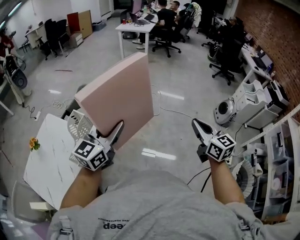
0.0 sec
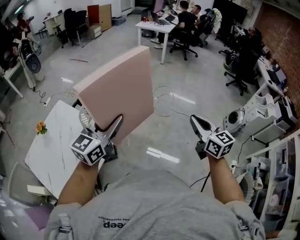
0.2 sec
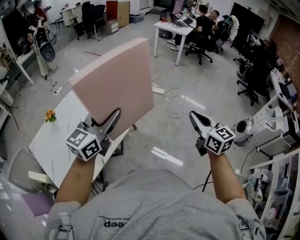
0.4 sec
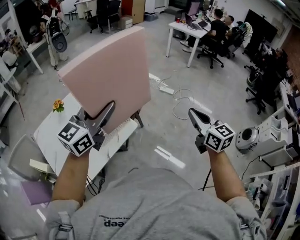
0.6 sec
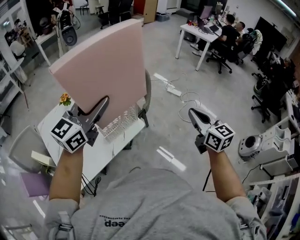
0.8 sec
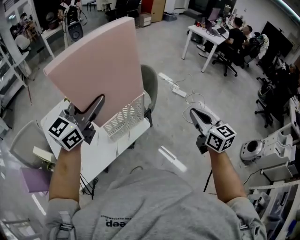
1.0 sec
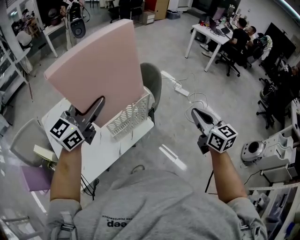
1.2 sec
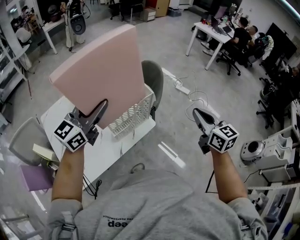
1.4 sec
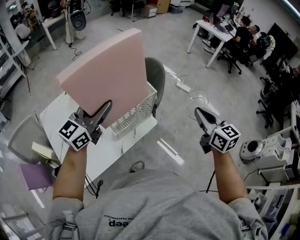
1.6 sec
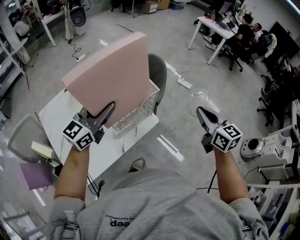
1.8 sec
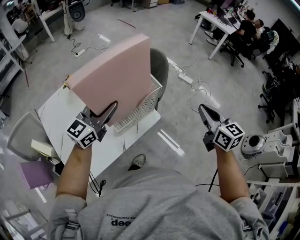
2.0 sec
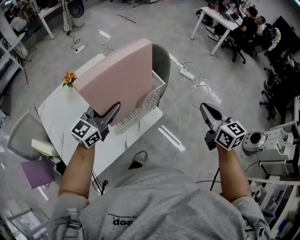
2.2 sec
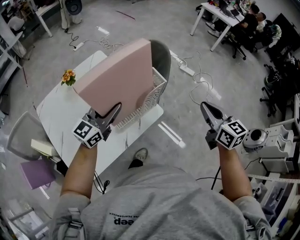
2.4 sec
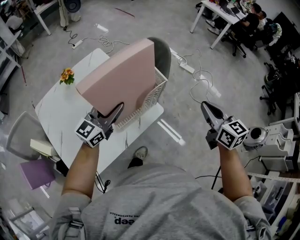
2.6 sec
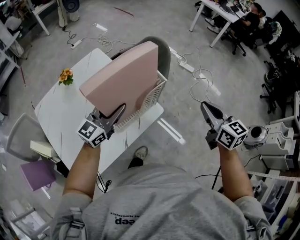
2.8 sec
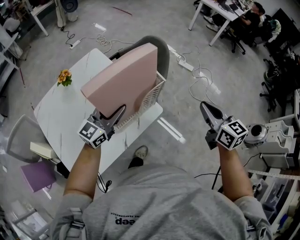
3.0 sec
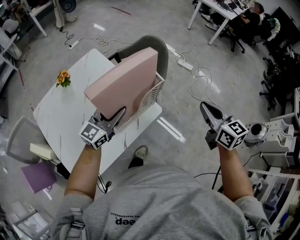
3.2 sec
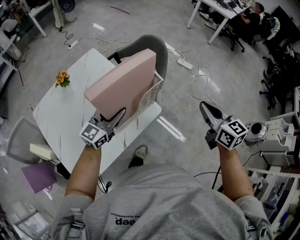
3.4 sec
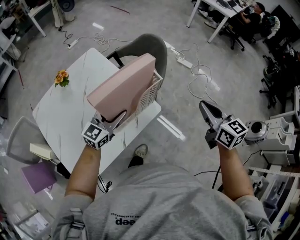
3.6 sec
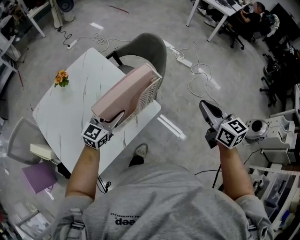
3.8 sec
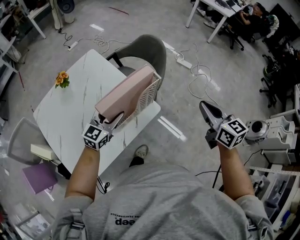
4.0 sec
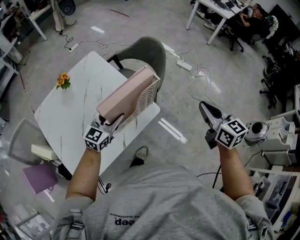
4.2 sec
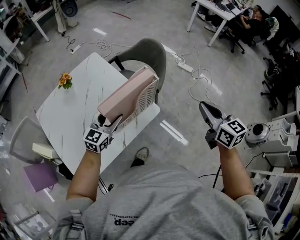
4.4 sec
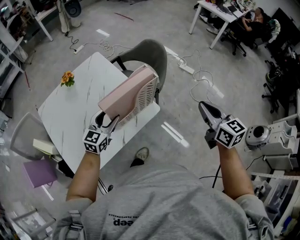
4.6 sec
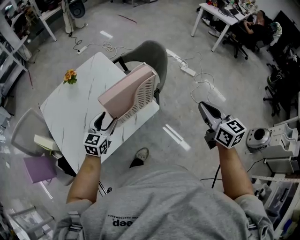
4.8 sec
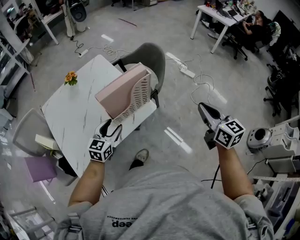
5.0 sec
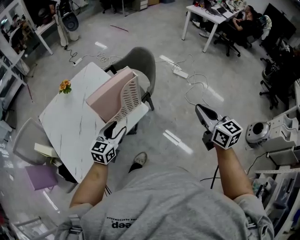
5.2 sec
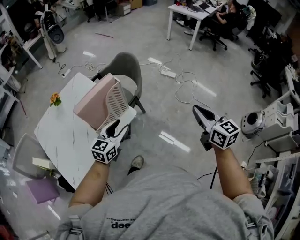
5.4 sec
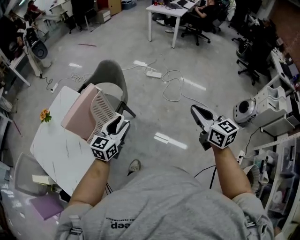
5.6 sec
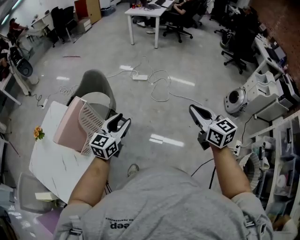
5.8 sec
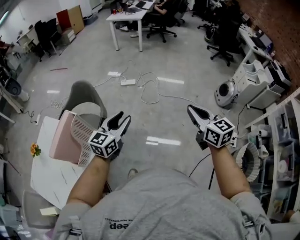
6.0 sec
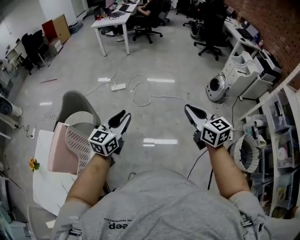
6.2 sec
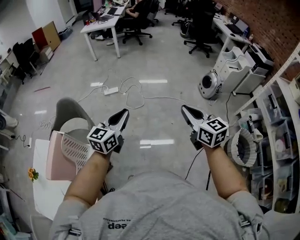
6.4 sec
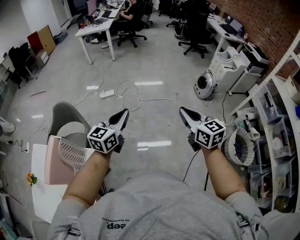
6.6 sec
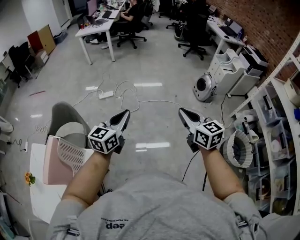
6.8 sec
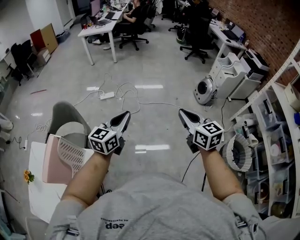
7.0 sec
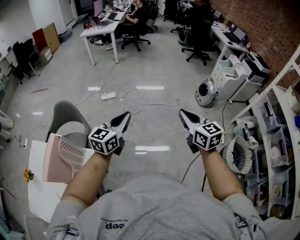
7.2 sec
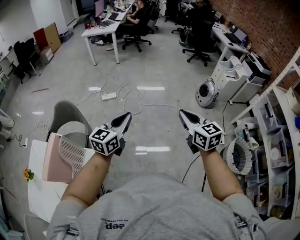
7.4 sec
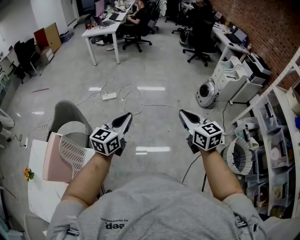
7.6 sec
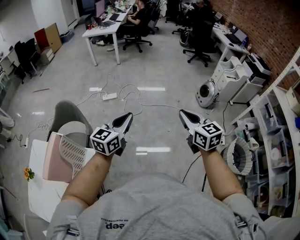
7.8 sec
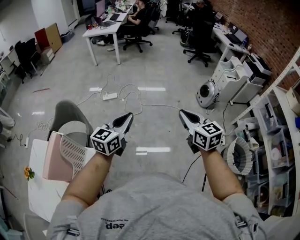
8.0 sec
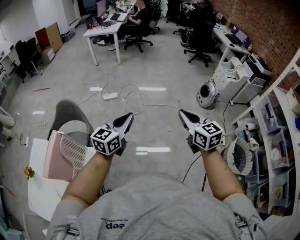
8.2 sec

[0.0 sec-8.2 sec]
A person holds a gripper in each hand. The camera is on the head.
0.0 sec to 1.6 sec: The left gripper reaches some 10 cm upward, then returns, and rotates approximately 30 degrees. Meanwhile the right gripper shifts by roughly 35 cm, and swivels approximately 30 degrees.
1.6 sec to 3.2 sec: The left gripper is displaced downward by some 20 cm, while the right gripper heads downward, covering about 5 cm.
3.2 sec to 5.0 sec: The left gripper is displaced backward and downward by approximately 15 cm, and swivels some 30 degrees. The right gripper shifts some 5 cm backward.
5.0 sec to 6.6 sec: The left gripper moves approximately 50 cm, swivels roughly 60 degrees, and closes up. Meanwhile the right gripper shifts by approximately 30 cm, and rotates about 50 degrees.
6.6 sec to 8.2 sec: The grippers move only a little.

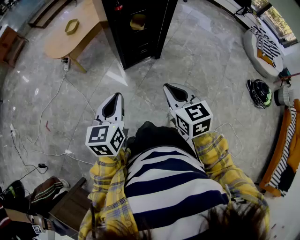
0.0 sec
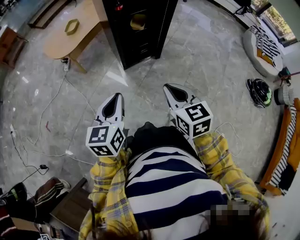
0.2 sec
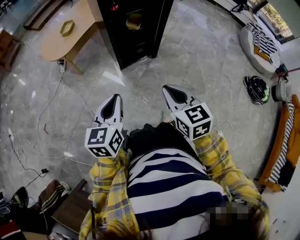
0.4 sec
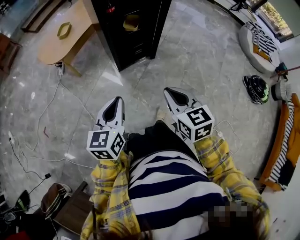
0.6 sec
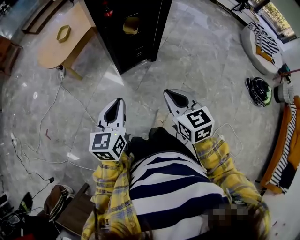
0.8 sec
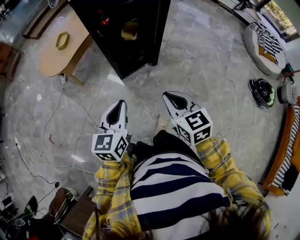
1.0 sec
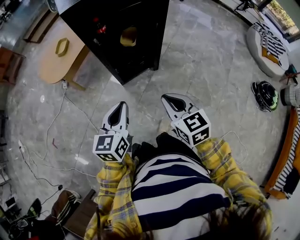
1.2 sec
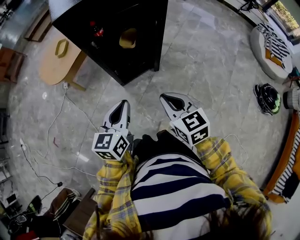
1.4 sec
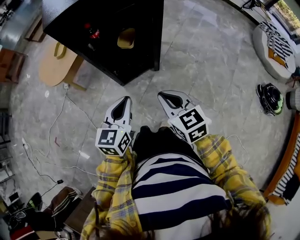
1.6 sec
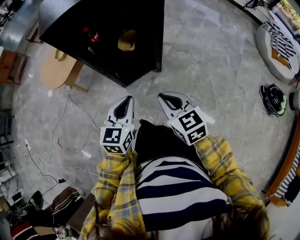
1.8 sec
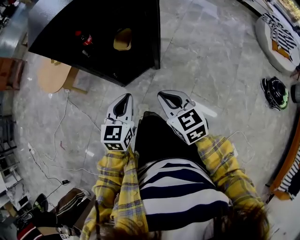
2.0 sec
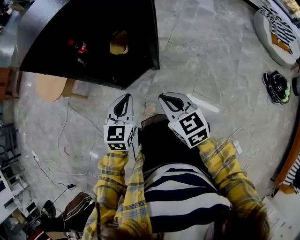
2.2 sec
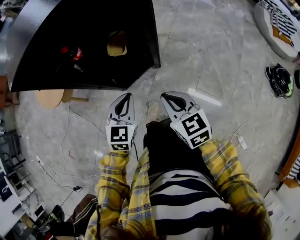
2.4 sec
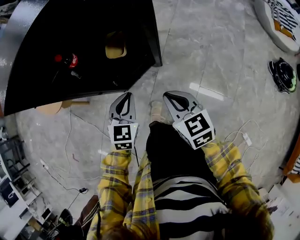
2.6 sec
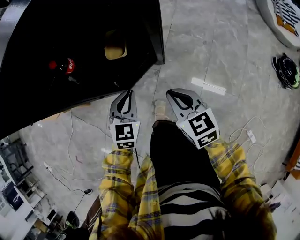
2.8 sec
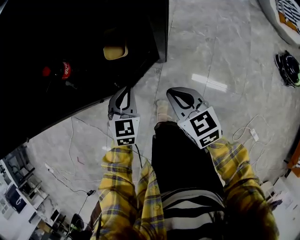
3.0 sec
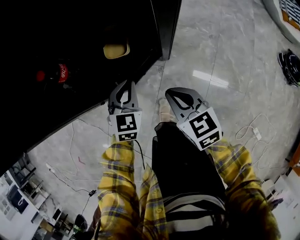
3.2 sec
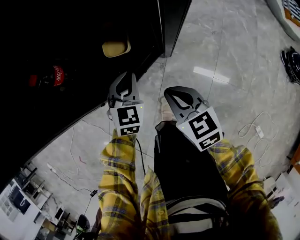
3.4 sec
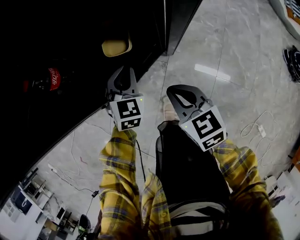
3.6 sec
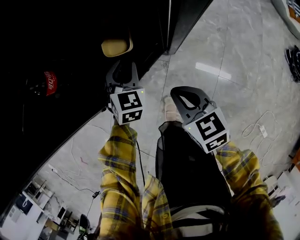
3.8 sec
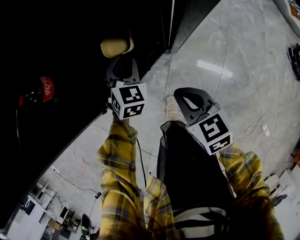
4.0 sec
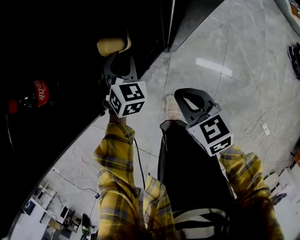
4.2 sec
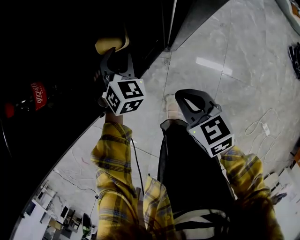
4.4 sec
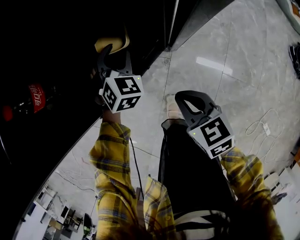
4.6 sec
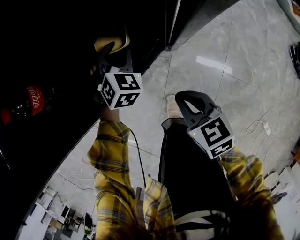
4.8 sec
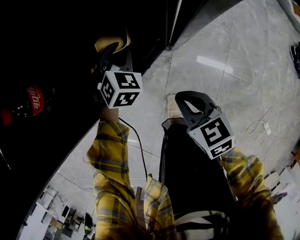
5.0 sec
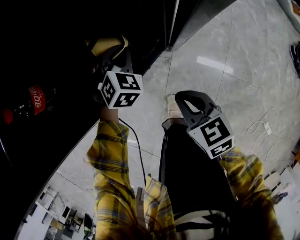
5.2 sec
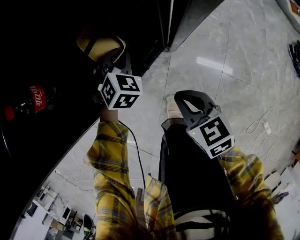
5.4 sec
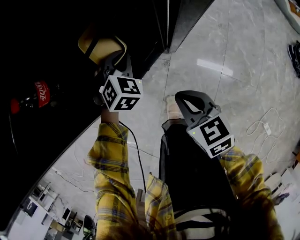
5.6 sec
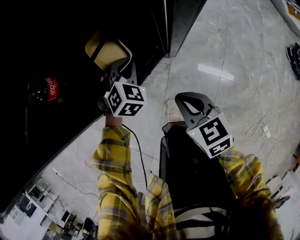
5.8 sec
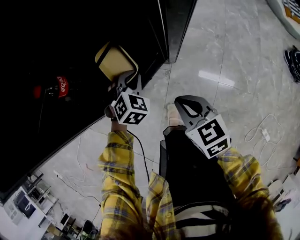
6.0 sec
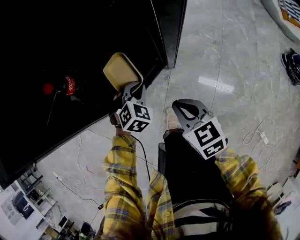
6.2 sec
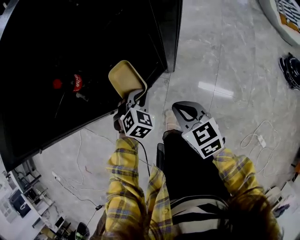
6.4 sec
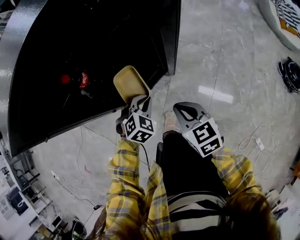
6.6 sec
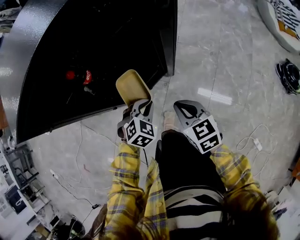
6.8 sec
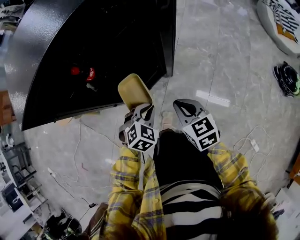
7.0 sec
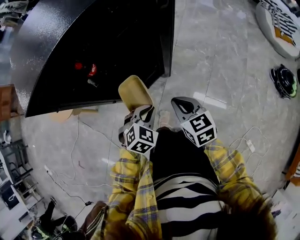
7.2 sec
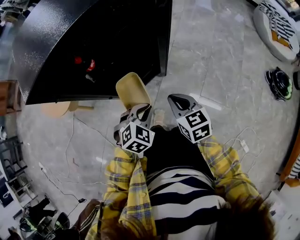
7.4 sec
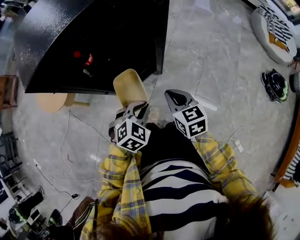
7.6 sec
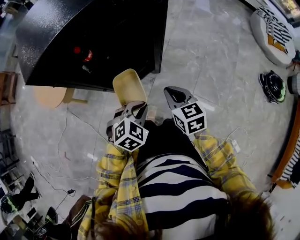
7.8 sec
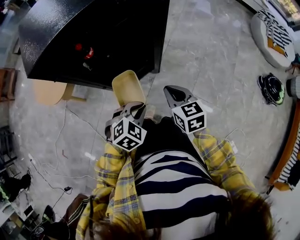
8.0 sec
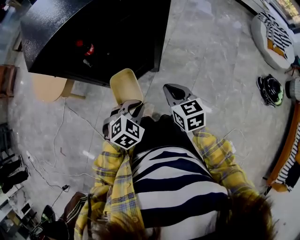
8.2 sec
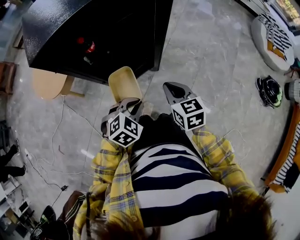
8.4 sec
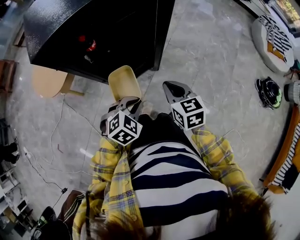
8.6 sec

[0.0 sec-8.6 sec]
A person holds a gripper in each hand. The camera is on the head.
0.0 sec to 1.4 sec: Both grippers travel together forward and to the right, roughly 15 cm.
1.4 sec to 2.8 sec: The two grippers go about 20 cm forward and downward. The left gripper turns by some 40 degrees.
2.8 sec to 4.4 sec: The right gripper travels downward by roughly 10 cm, while the left gripper heads forward and downward, covering about 20 cm, rotates approximately 30 degrees, and opens.
4.4 sec to 5.8 sec: The left gripper closes its fingers.
5.8 sec to 7.2 sec: The right gripper heads upward, covering roughly 10 cm. The left gripper goes about 25 cm backward and upward.
7.2 sec to 8.6 sec: The left gripper is displaced upward and backward by some 10 cm; the right gripper changes place by roughly 5 cm.

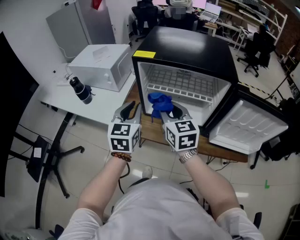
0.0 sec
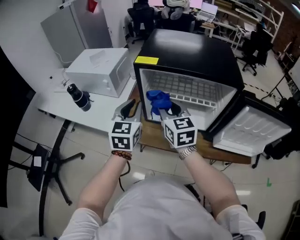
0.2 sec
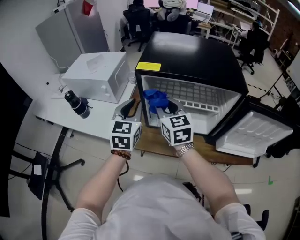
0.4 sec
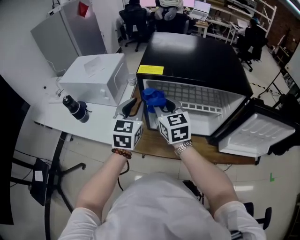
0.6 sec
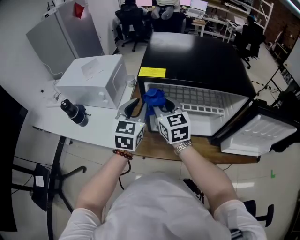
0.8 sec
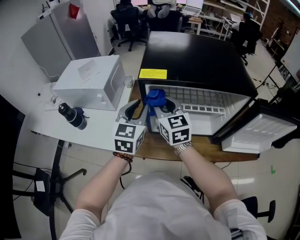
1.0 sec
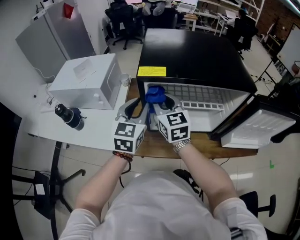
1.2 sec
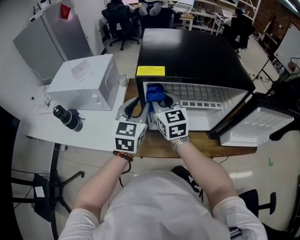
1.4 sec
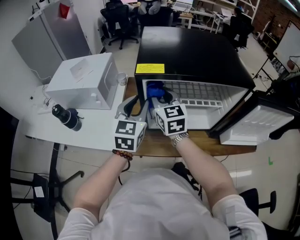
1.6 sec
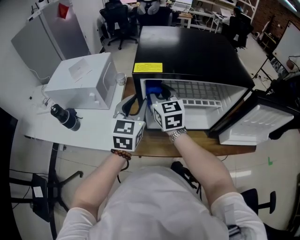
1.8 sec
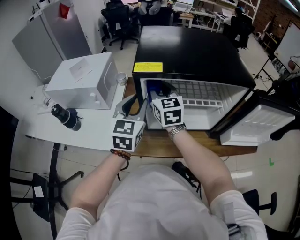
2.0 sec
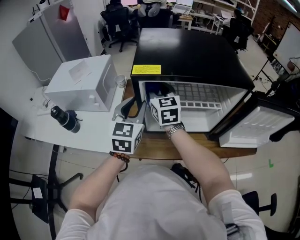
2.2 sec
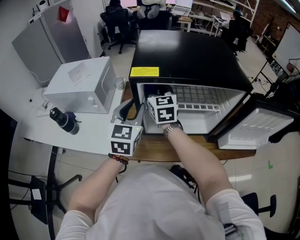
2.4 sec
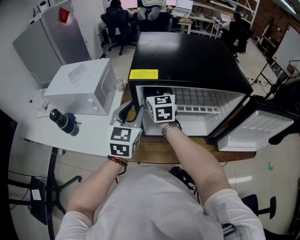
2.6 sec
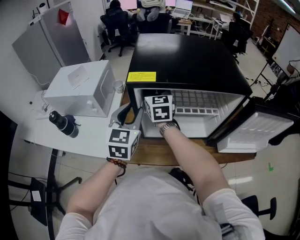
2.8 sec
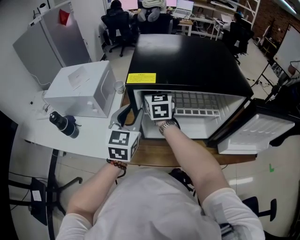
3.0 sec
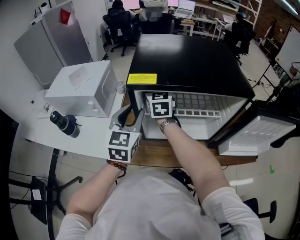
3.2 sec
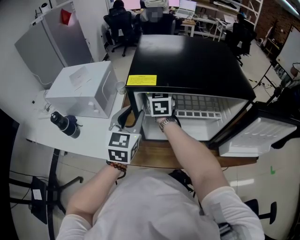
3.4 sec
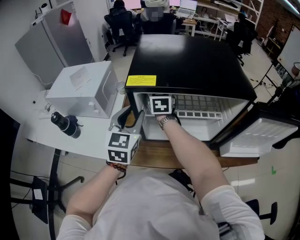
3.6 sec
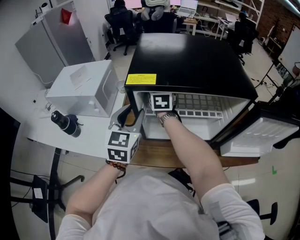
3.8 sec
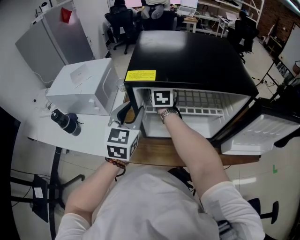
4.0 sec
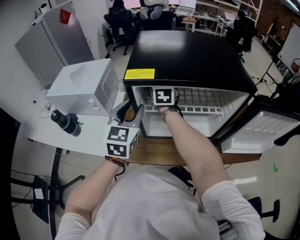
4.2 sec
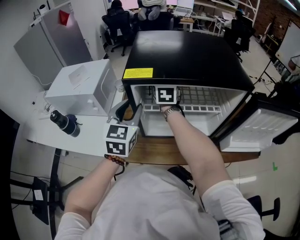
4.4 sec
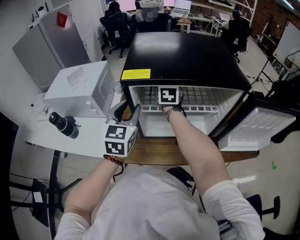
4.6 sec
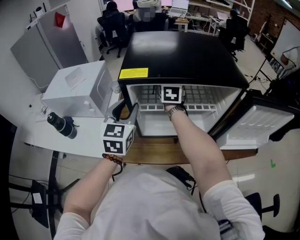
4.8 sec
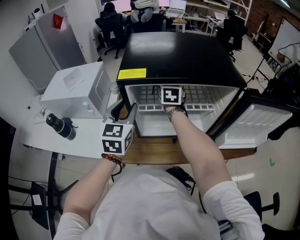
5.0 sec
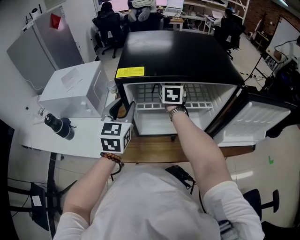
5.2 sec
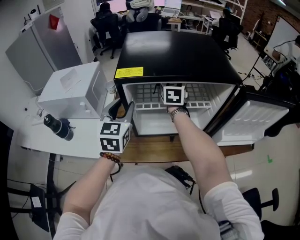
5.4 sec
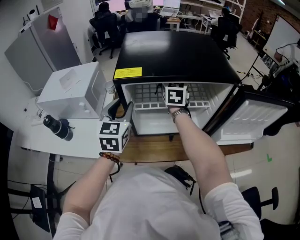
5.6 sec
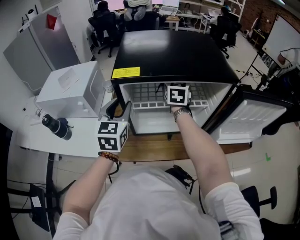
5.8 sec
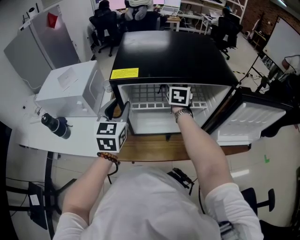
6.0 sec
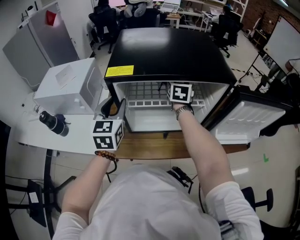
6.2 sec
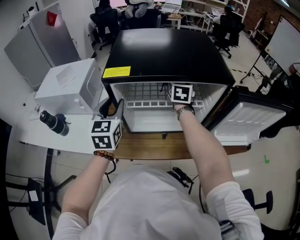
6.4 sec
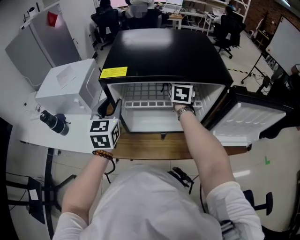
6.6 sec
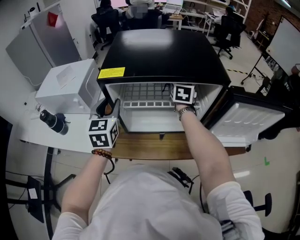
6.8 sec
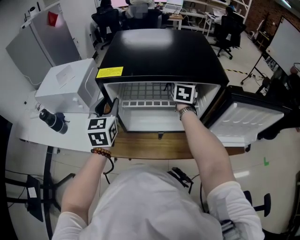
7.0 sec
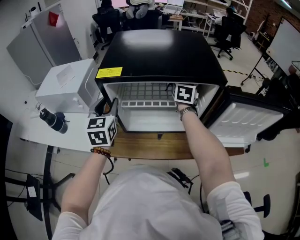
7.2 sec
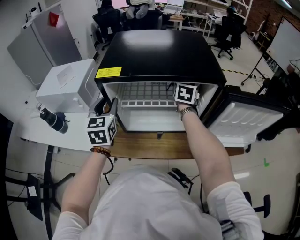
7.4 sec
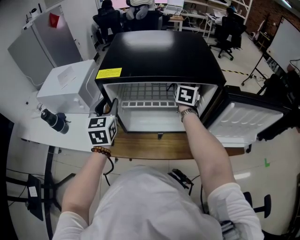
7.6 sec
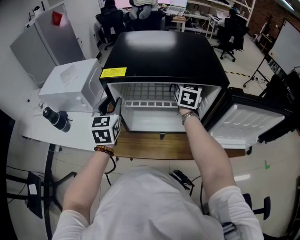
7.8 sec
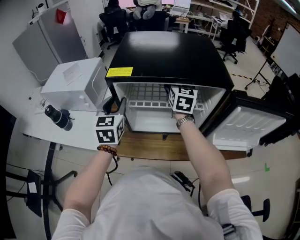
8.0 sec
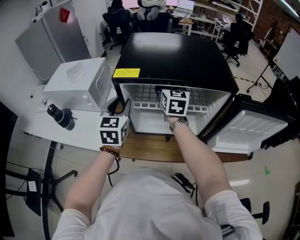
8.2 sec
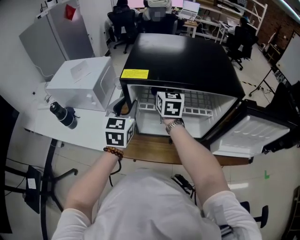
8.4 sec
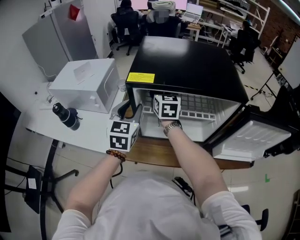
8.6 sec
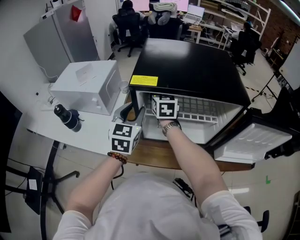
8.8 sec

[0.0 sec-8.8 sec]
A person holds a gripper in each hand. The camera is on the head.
0.0 sec to 1.4 sec: The right gripper moves forward and to the left, some 20 cm, while the left gripper is displaced forward by approximately 15 cm.
1.4 sec to 3.0 sec: The right gripper is displaced forward by some 10 cm.
3.0 sec to 4.4 sec: The right gripper shifts by roughly 5 cm.
4.4 sec to 5.8 sec: The right gripper goes about 10 cm to the right.
5.8 sec to 7.4 sec: The right gripper is displaced to the right by roughly 10 cm.
7.4 sec to 8.8 sec: The right gripper is displaced to the left by roughly 25 cm, and swivels about 30 degrees.
